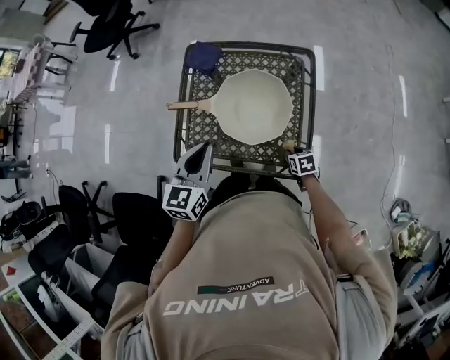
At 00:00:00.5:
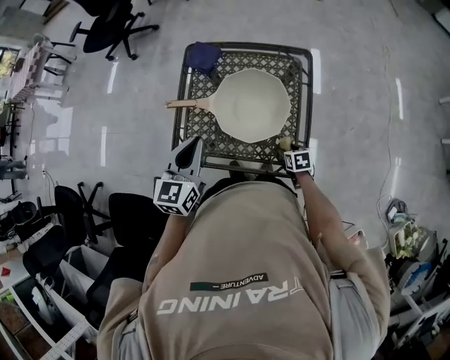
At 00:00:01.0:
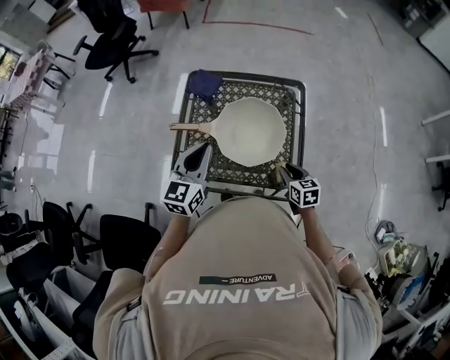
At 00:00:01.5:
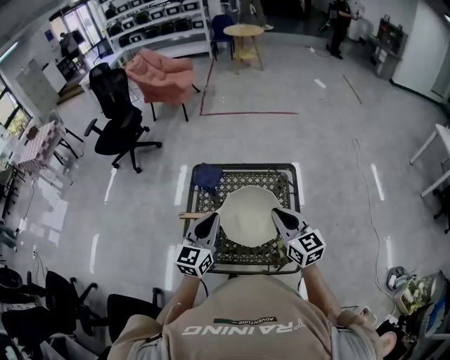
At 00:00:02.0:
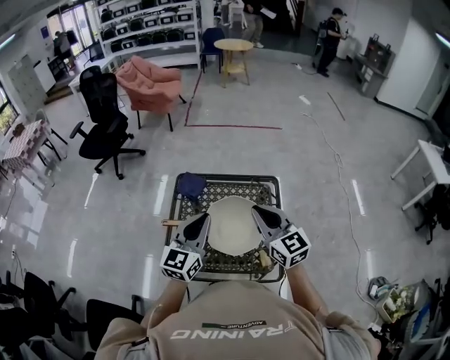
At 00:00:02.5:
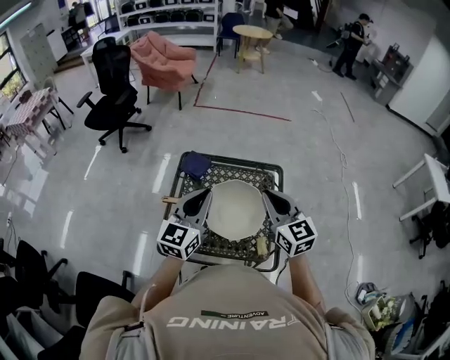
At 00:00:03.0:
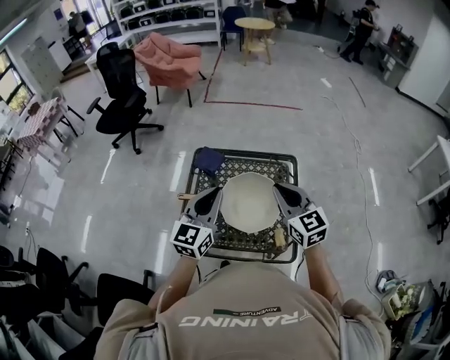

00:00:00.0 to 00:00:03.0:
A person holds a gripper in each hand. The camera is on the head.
00:00:00.0 to 00:00:01.5: The right gripper heads upward, covering roughly 40 cm, tips its fingers upward by approximately 50 degrees, and closes up; the left gripper travels upward and forward by approximately 10 cm.
00:00:01.5 to 00:00:03.0: The two grippers go some 5 cm upward.

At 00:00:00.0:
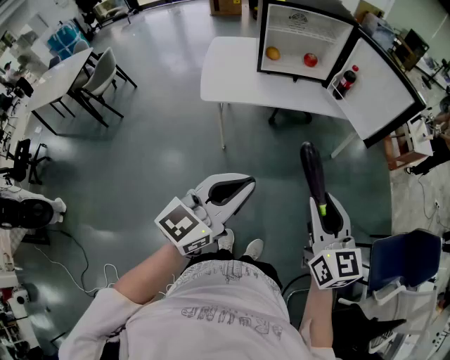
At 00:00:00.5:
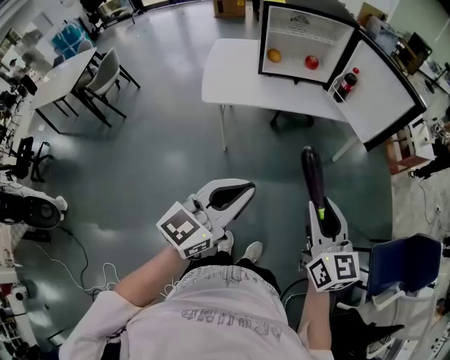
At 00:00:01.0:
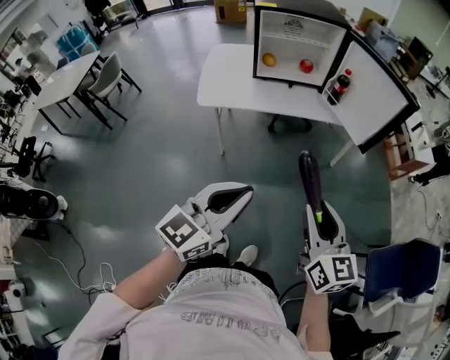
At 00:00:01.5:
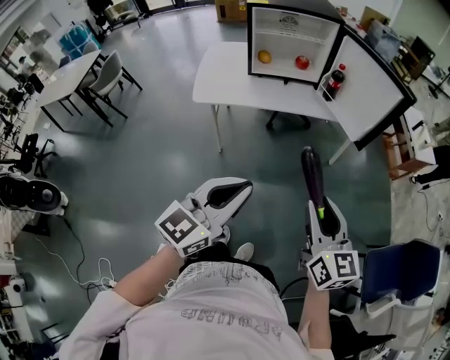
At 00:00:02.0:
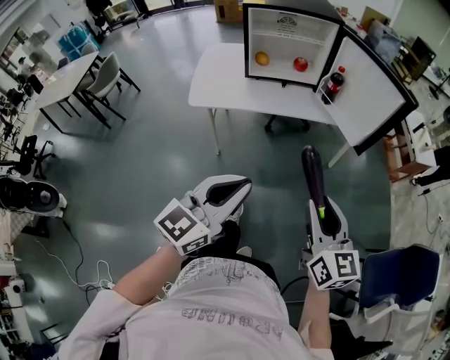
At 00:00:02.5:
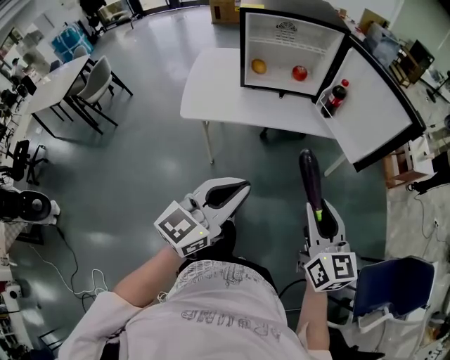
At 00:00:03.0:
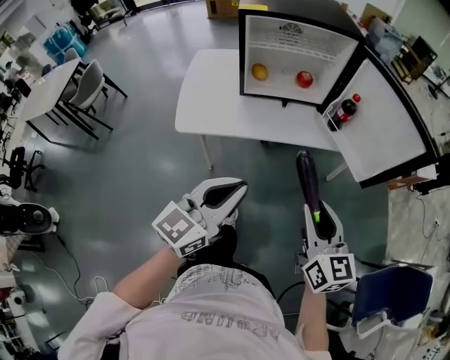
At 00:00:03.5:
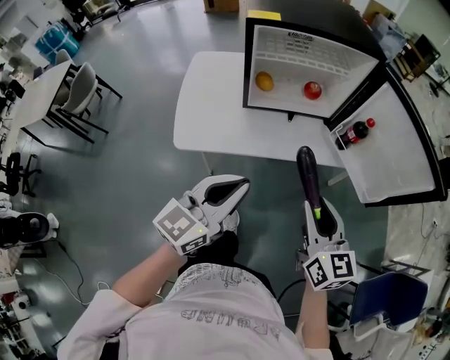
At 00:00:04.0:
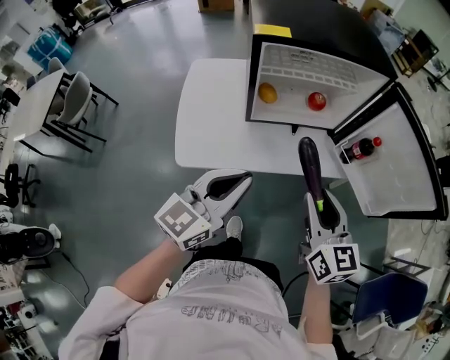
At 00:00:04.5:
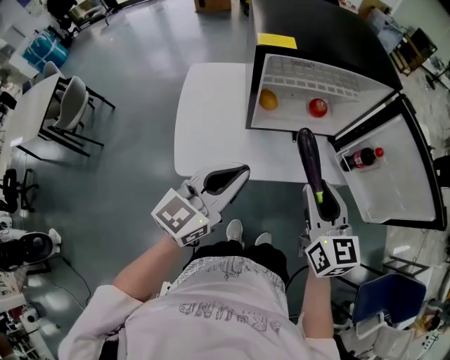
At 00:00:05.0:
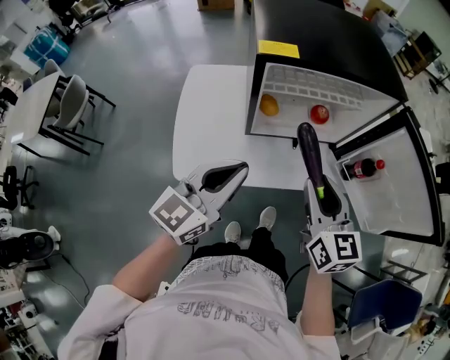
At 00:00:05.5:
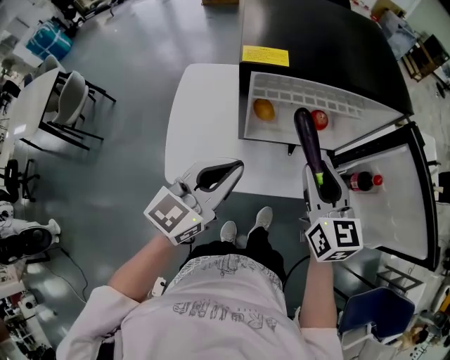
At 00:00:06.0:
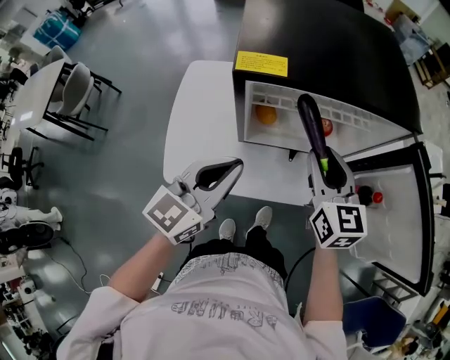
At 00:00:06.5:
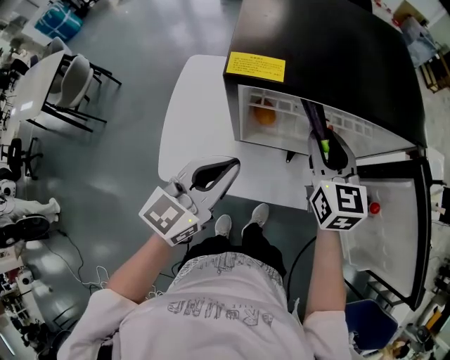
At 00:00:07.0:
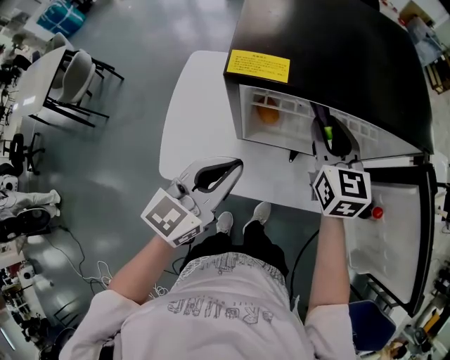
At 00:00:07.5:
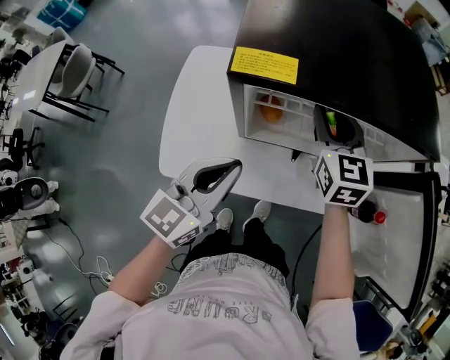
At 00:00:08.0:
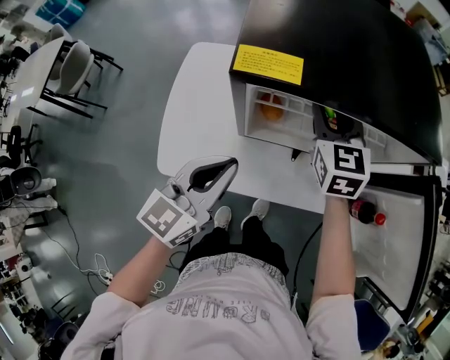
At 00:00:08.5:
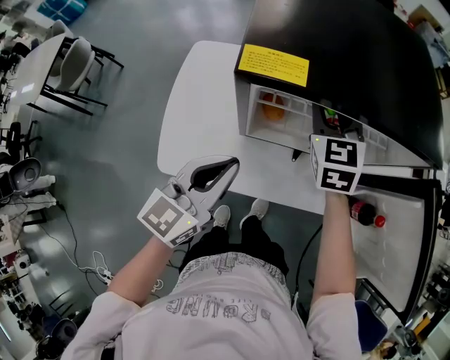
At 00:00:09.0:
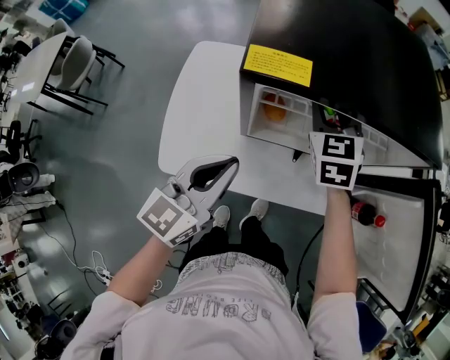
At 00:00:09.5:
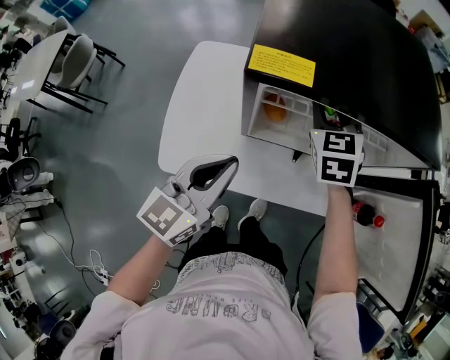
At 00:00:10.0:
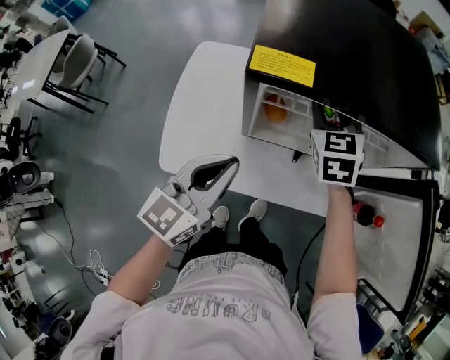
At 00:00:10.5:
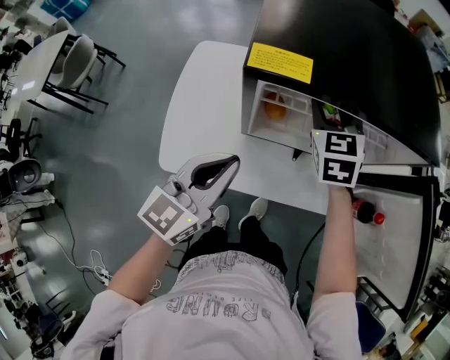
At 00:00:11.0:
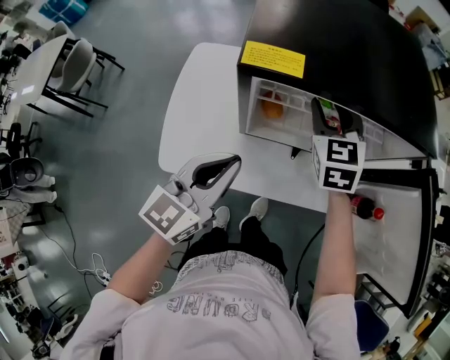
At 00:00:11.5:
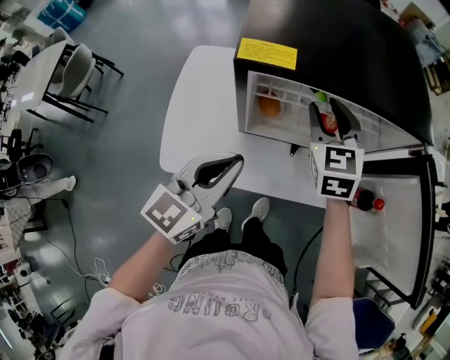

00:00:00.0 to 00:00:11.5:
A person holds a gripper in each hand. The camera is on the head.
00:00:00.0 to 00:00:02.0: The right gripper heads to the right and forward, covering roughly 10 cm, while the left gripper travels to the right by about 10 cm.
00:00:02.0 to 00:00:04.0: The two grippers go roughly 40 cm forward and to the left.
00:00:04.0 to 00:00:06.0: The grippers both shift forward by some 20 cm.
00:00:06.0 to 00:00:07.5: The right gripper shifts approximately 10 cm forward.
00:00:07.5 to 00:00:09.5: The grippers stay close to where they were, moving slightly.
00:00:09.5 to 00:00:11.5: The right gripper changes place by about 5 cm.

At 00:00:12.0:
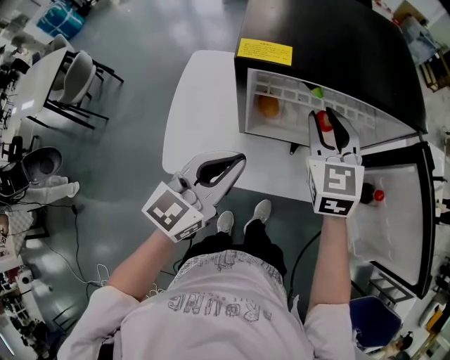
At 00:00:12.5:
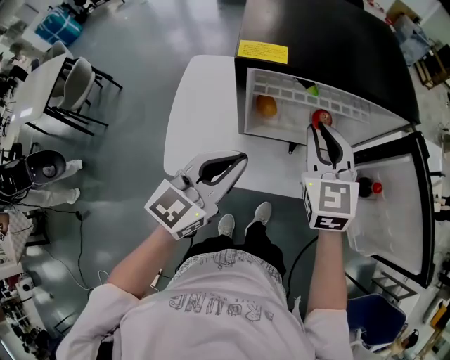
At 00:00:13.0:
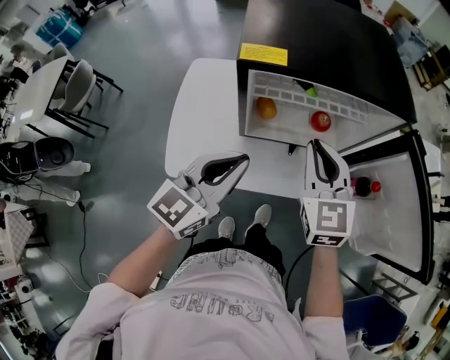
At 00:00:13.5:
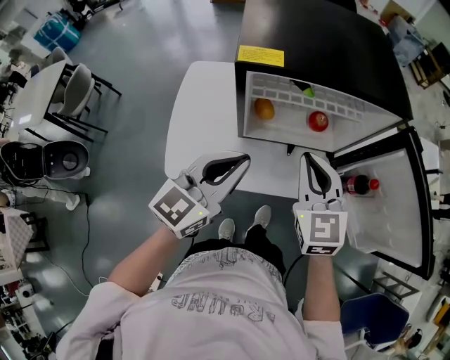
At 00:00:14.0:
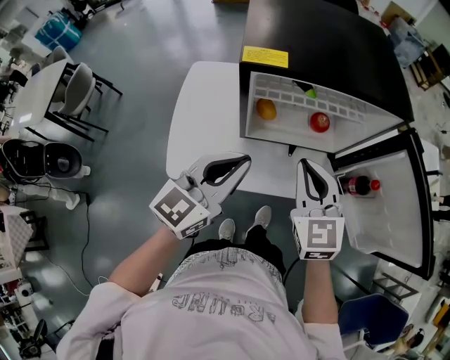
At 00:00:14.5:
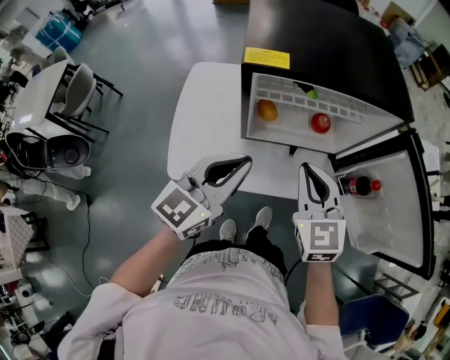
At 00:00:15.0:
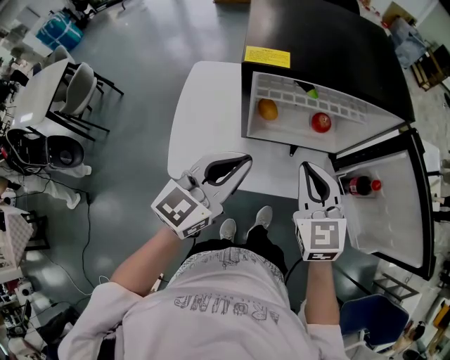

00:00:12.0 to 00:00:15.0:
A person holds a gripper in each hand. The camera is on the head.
00:00:12.0 to 00:00:13.5: The right gripper shifts roughly 10 cm backward, and closes its fingers.
00:00:13.5 to 00:00:15.0: The grippers make only small movements.

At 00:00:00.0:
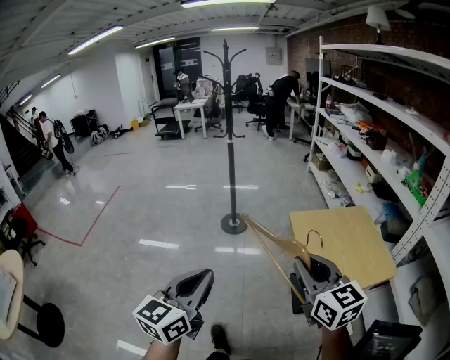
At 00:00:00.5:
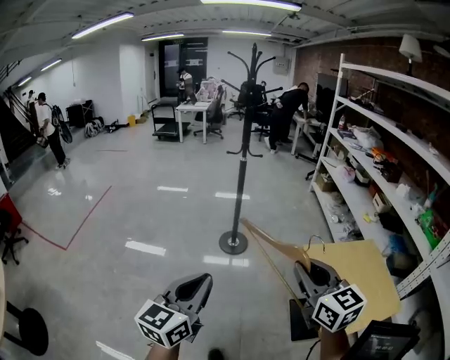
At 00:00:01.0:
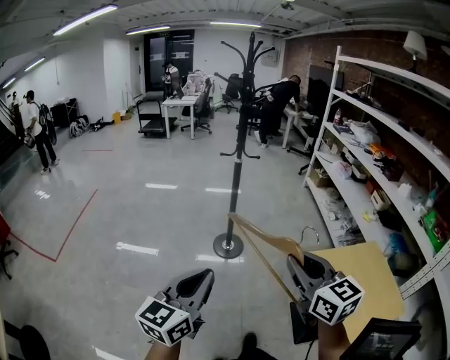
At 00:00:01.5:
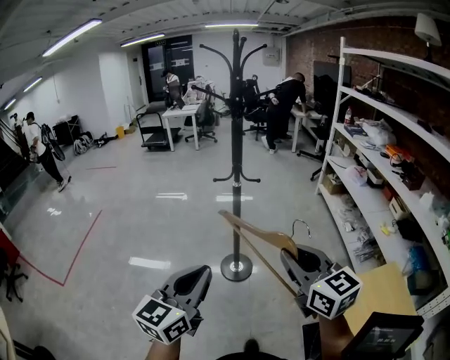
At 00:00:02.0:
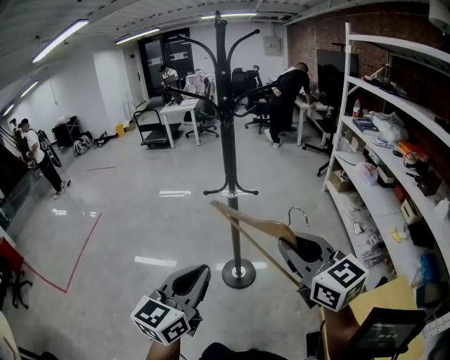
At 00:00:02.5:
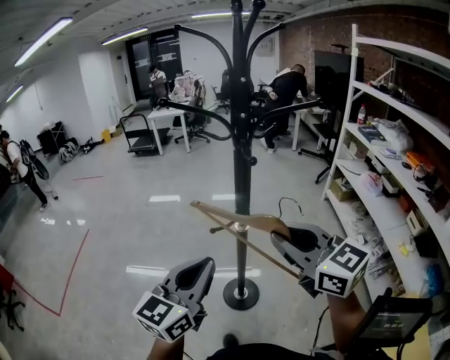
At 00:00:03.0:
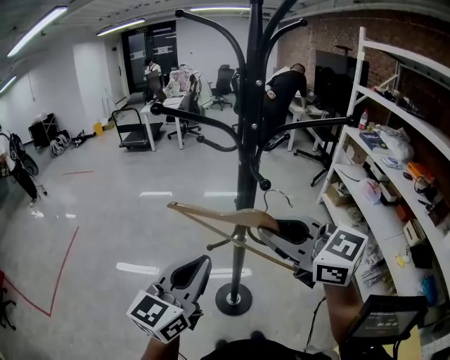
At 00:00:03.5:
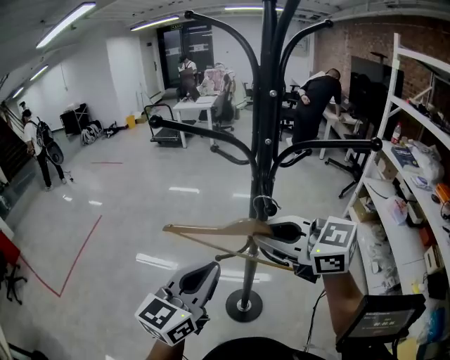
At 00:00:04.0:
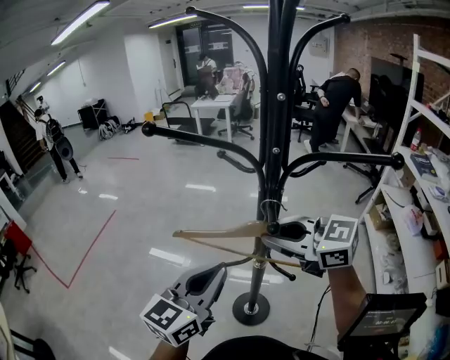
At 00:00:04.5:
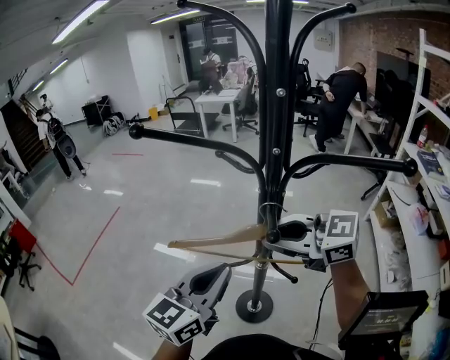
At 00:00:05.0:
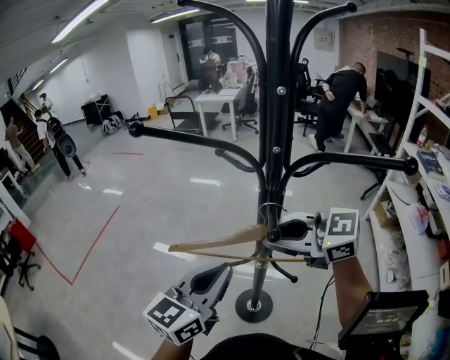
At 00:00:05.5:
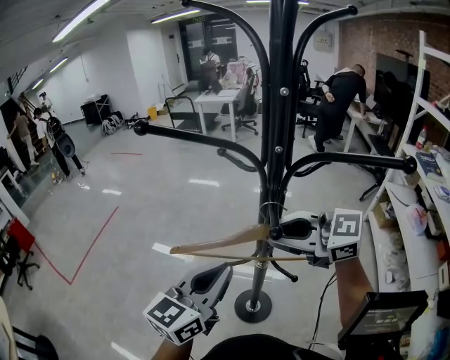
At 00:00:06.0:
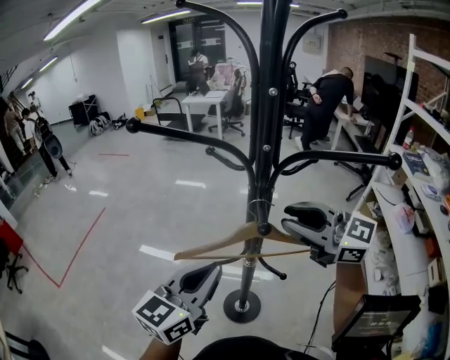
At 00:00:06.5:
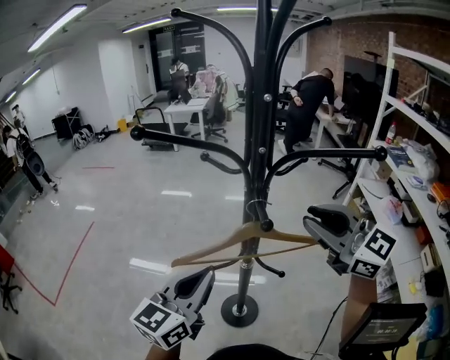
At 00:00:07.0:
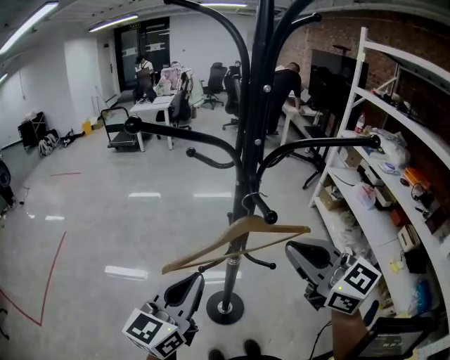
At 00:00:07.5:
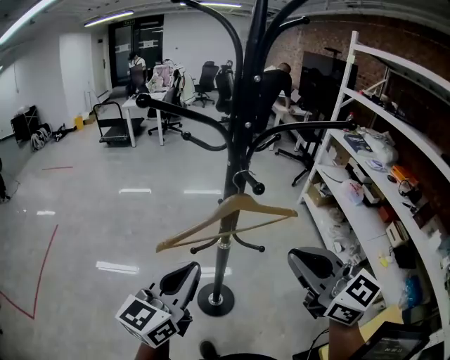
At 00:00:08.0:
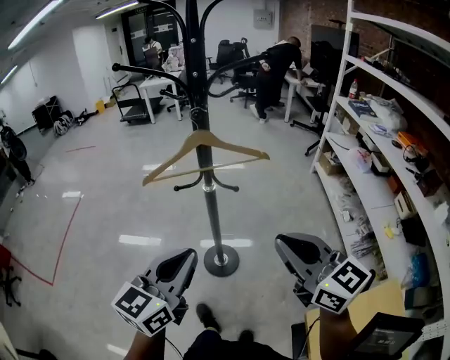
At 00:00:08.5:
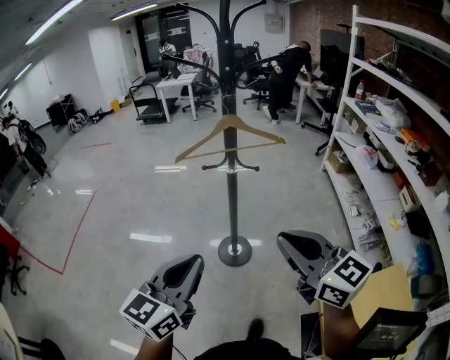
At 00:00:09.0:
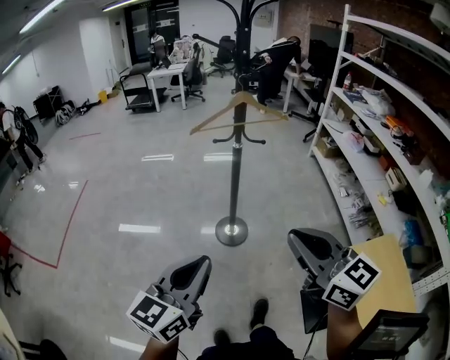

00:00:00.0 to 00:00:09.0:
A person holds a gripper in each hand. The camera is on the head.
00:00:00.0 to 00:00:02.0: The two grippers travel together, forward, some 60 cm.
00:00:02.0 to 00:00:04.5: The right gripper ends up approximately 35 cm from where it was, and changes its angle by some 50 degrees. The left gripper ends up about 30 cm from where it was.
00:00:04.5 to 00:00:07.0: The right gripper changes place by approximately 10 cm, and changes its angle by roughly 50 degrees.
00:00:07.0 to 00:00:09.0: The two grippers travel together, backward, about 40 cm.
